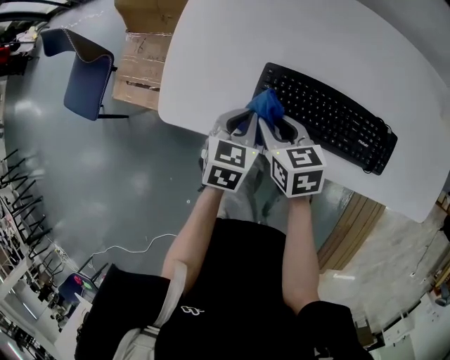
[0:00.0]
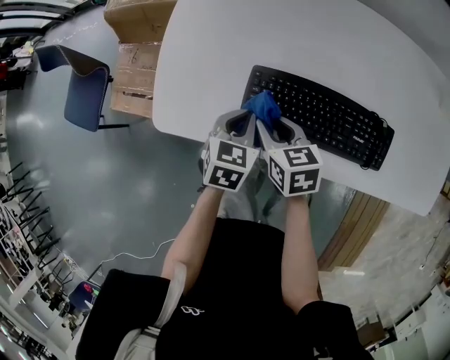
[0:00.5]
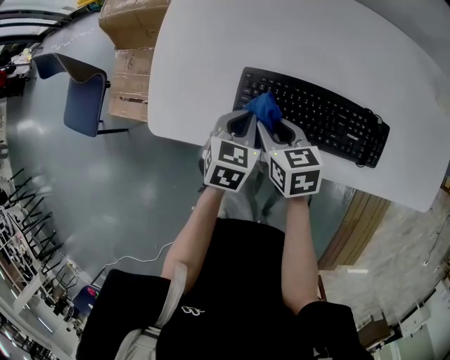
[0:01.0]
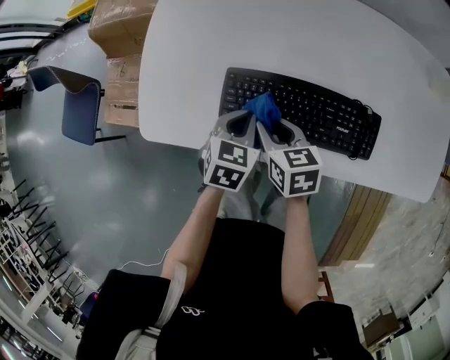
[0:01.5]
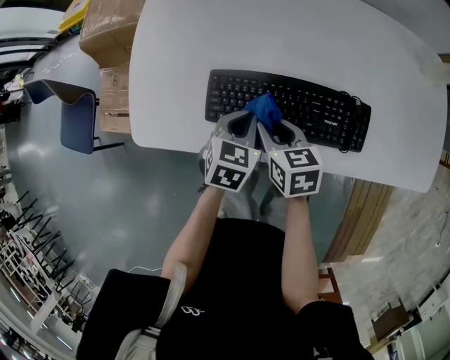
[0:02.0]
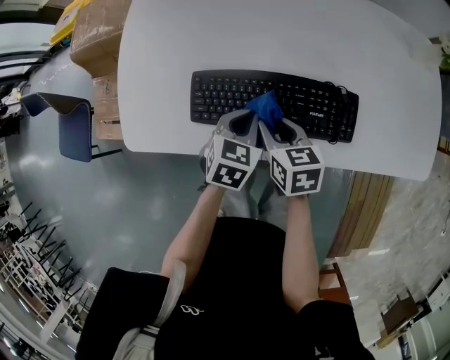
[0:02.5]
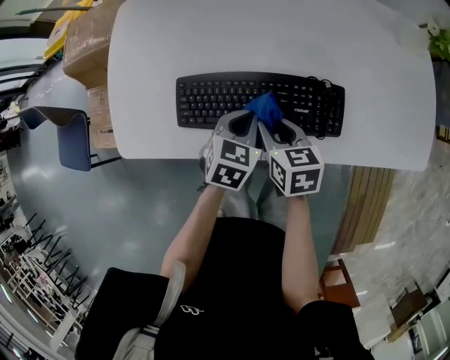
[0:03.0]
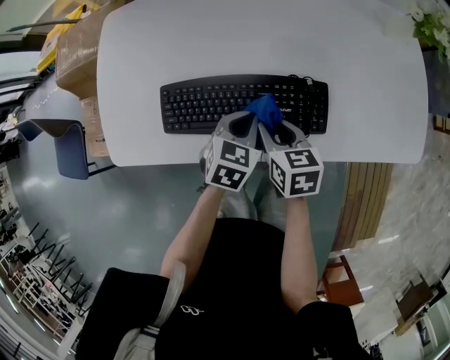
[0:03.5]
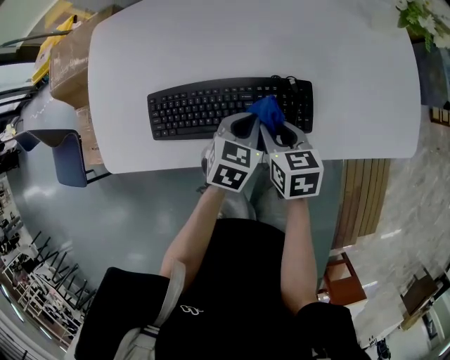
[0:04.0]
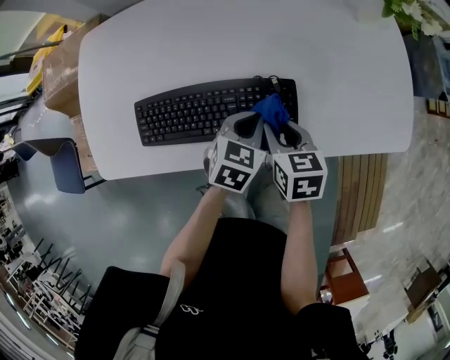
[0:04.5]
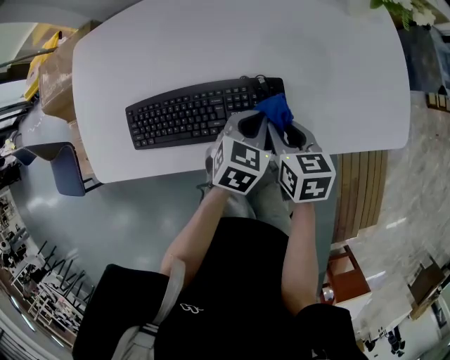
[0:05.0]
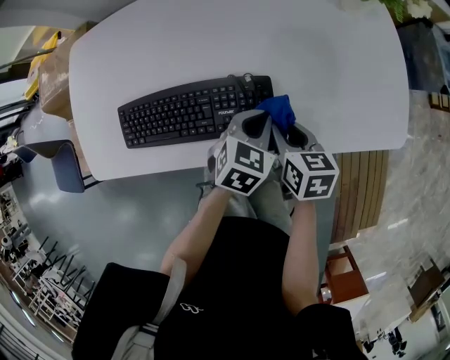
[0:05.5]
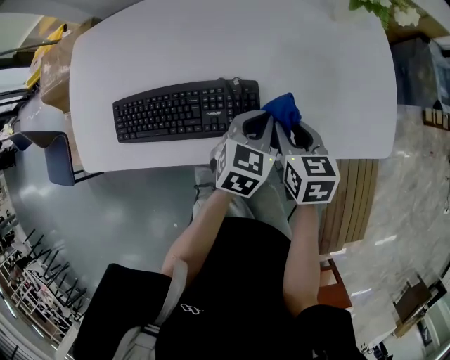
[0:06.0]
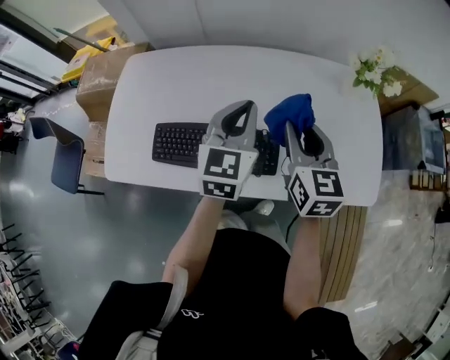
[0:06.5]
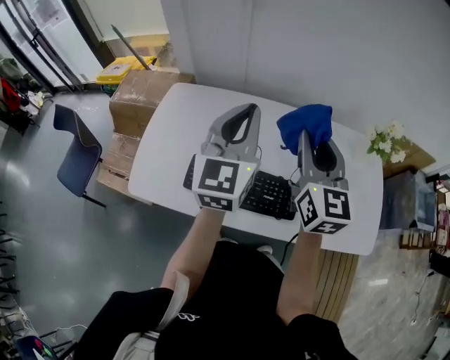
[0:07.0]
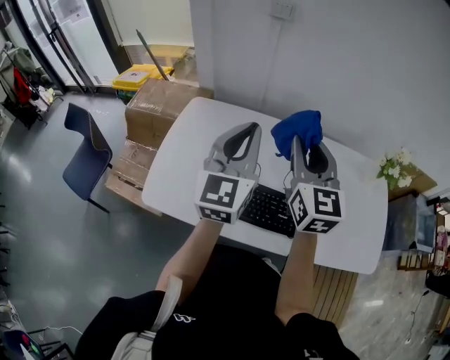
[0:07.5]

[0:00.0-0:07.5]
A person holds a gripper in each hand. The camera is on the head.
0:00.0 to 0:02.0: The two grippers go approximately 10 cm to the right.
0:02.0 to 0:04.0: Both grippers move to the right, roughly 15 cm.
0:04.0 to 0:05.5: Both grippers move to the right, some 15 cm.
0:05.5 to 0:07.5: Both grippers travel together upward and to the left, some 50 cm. The right gripper tilts its fingers about 40 degrees upward; the left gripper points its fingers some 50 degrees further upward.

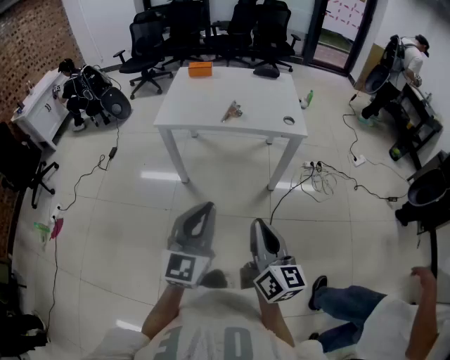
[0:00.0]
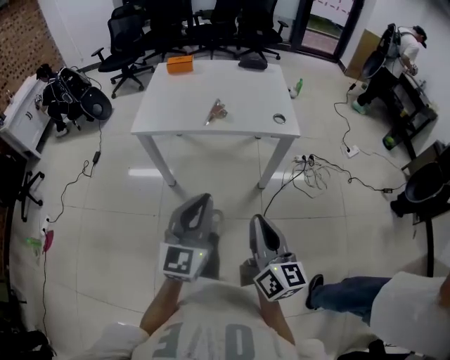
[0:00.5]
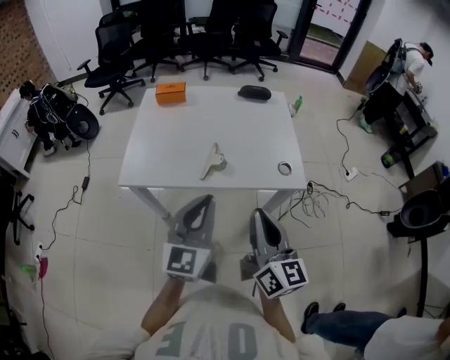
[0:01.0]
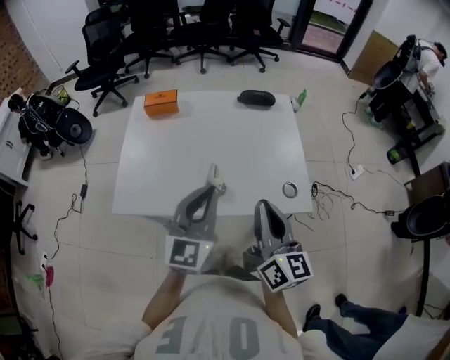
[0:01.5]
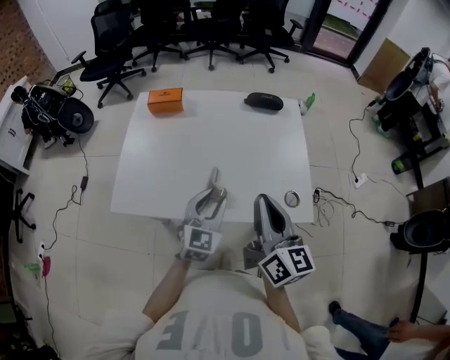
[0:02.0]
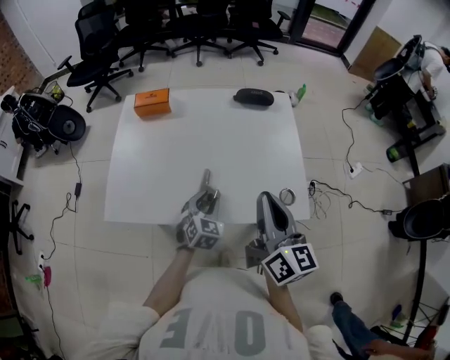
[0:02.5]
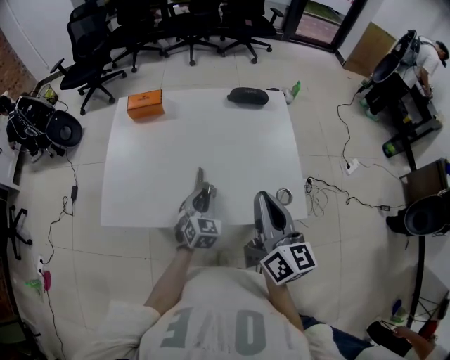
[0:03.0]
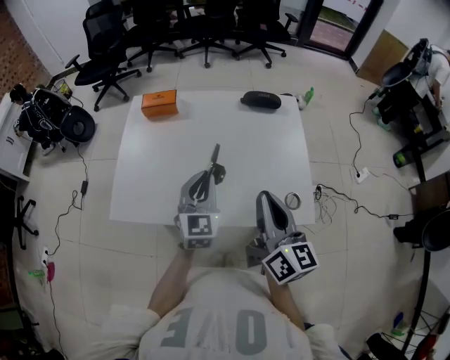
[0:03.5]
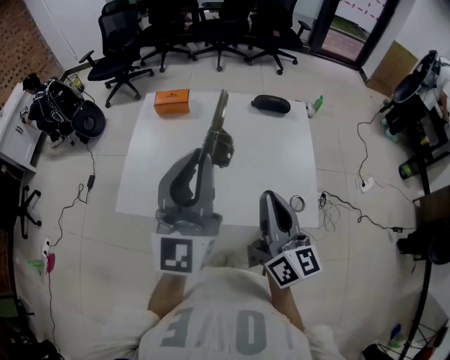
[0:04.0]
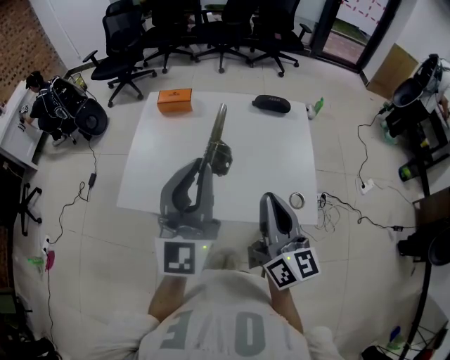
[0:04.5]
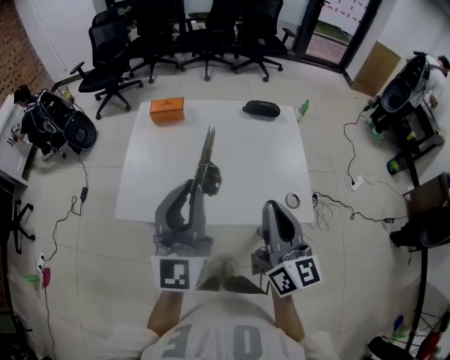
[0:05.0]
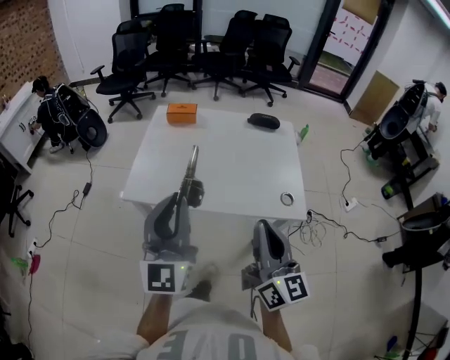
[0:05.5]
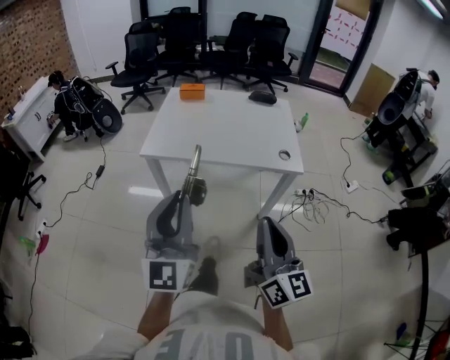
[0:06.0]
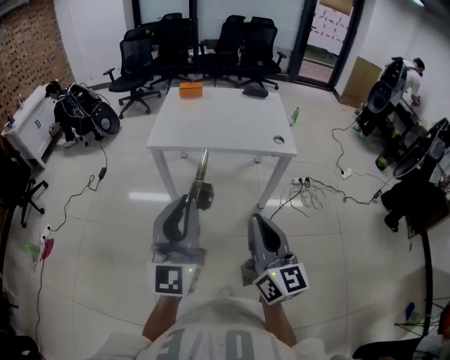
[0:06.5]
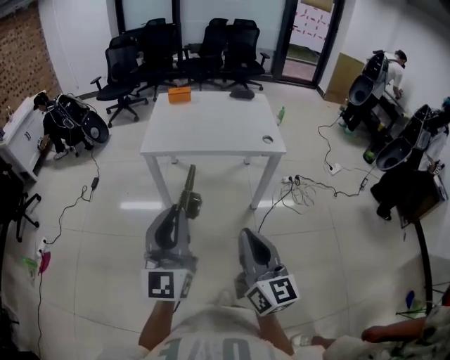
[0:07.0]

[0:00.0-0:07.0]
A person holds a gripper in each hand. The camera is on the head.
0:00.0 to 0:02.0: The pair of grippers is taken forward, approximately 50 cm. The left gripper rotates some 20 degrees, and opens its fingers.
0:02.0 to 0:03.5: The left gripper travels forward by about 5 cm, travels downward and back again, roughly 10 cm each way, and closes.
0:03.5 to 0:05.0: The left gripper goes approximately 20 cm upward and backward, and changes its angle by about 30 degrees. Meanwhile the right gripper is displaced backward by roughly 5 cm.
0:05.0 to 0:07.0: Both grippers are carried backward, some 50 cm.

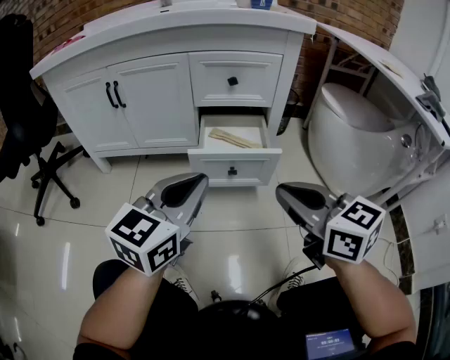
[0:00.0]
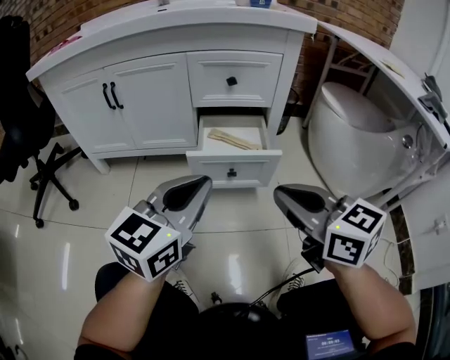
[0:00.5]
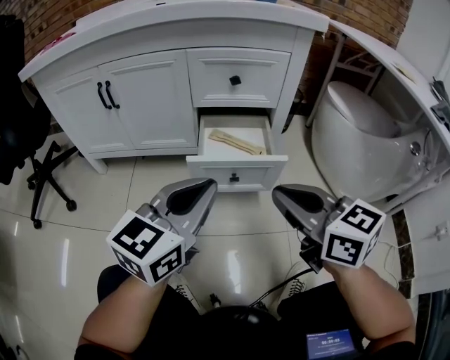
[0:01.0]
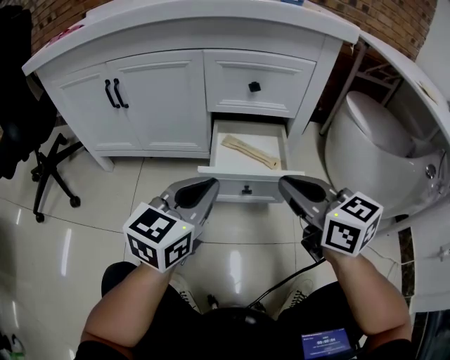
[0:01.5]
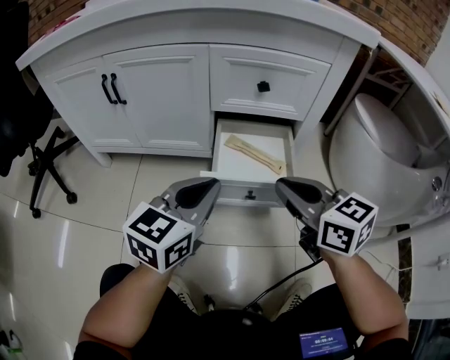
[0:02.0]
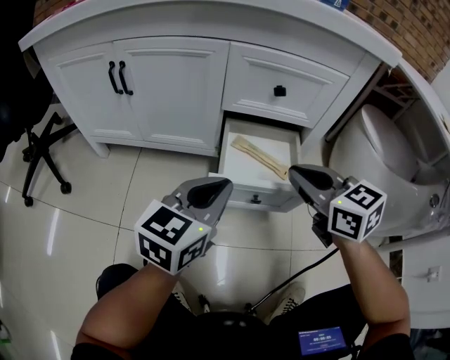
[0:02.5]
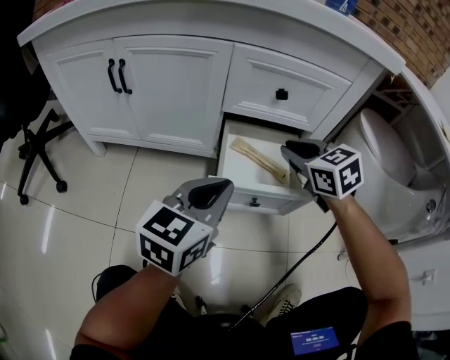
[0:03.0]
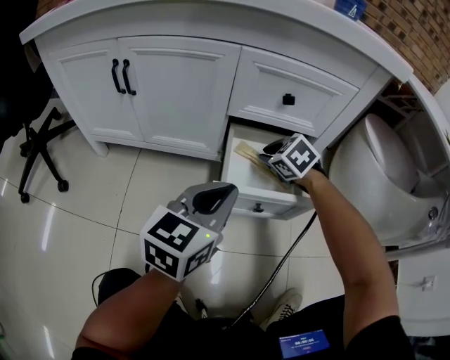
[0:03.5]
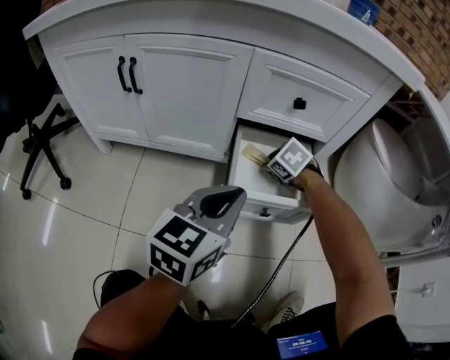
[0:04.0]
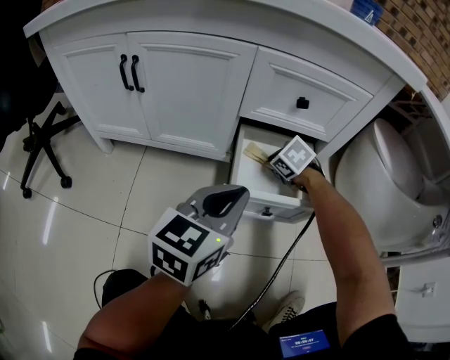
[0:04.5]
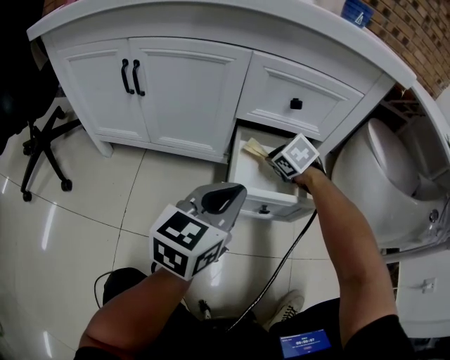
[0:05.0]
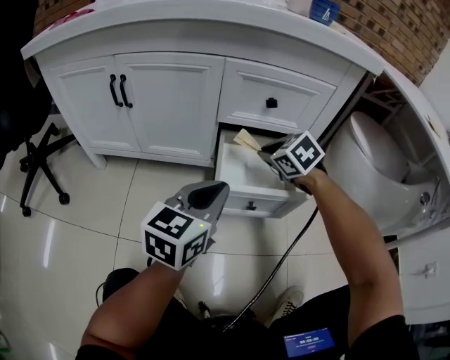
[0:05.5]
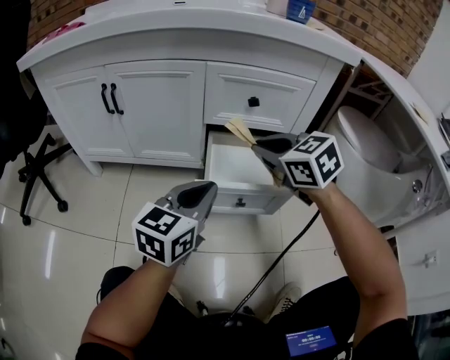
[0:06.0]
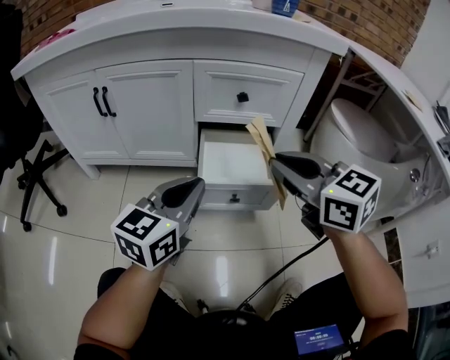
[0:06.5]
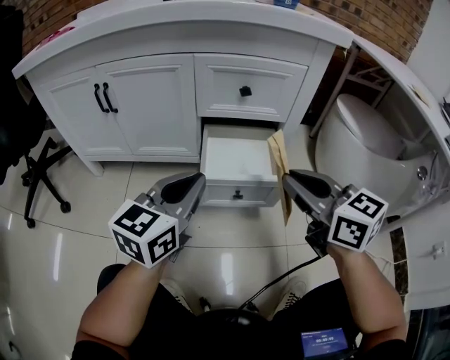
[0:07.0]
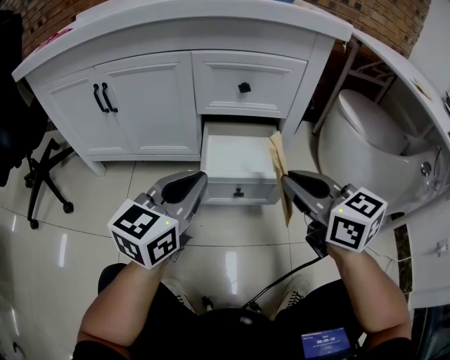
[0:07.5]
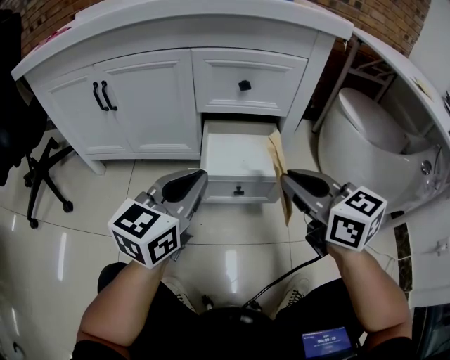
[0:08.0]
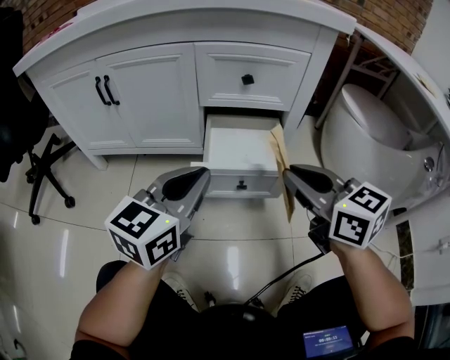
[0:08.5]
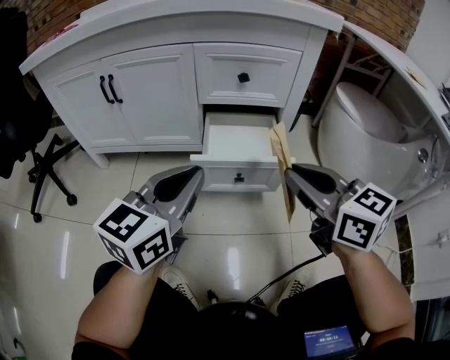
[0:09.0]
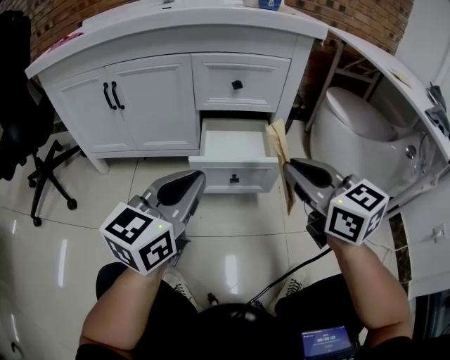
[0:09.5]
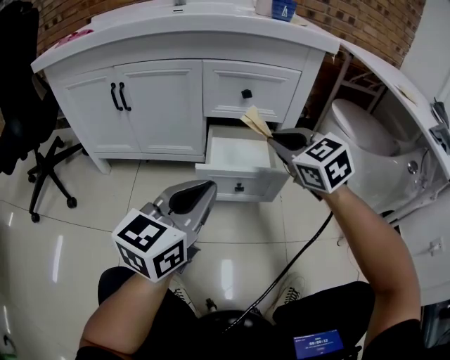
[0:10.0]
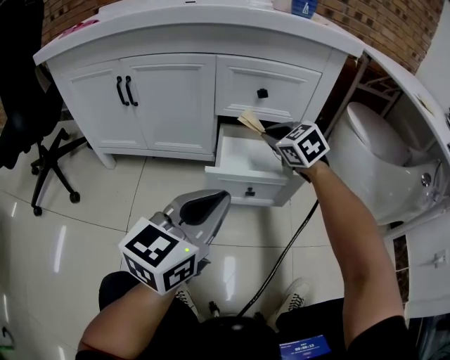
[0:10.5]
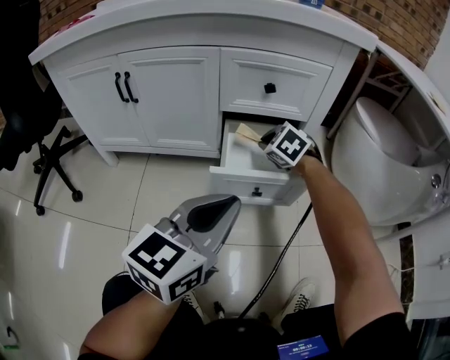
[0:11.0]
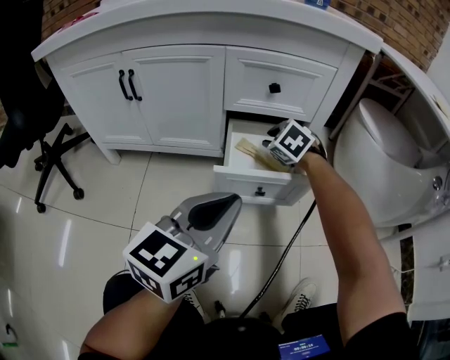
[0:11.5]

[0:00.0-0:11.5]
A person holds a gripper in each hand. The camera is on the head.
0:00.0 to 0:02.0: The left gripper moves forward and downward, approximately 15 cm, while the right gripper moves forward, about 15 cm.
0:02.0 to 0:04.0: The right gripper travels forward and downward by about 30 cm, tips its fingers downward by approximately 50 degrees, and opens up.
0:04.0 to 0:06.0: The right gripper heads upward and backward, covering approximately 25 cm, tips its fingers upward by roughly 30 degrees, and closes its fingers.
0:06.0 to 0:07.5: The right gripper moves backward and to the right, some 15 cm, and changes its angle by about 30 degrees.
0:07.5 to 0:09.5: The two grippers go about 5 cm backward.
0:09.5 to 0:11.5: The right gripper travels forward and downward by roughly 30 cm, and points its fingers some 40 degrees further downward.

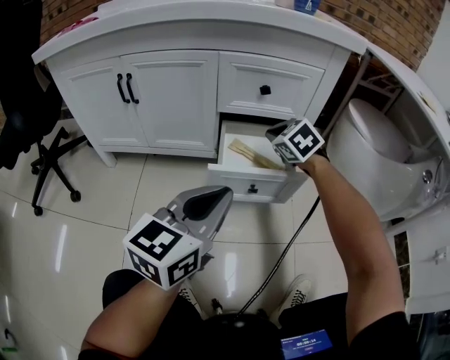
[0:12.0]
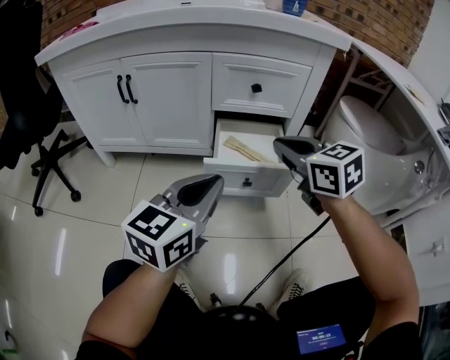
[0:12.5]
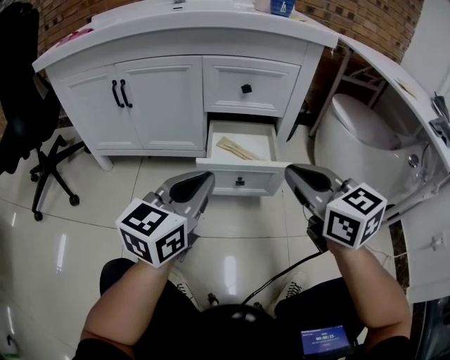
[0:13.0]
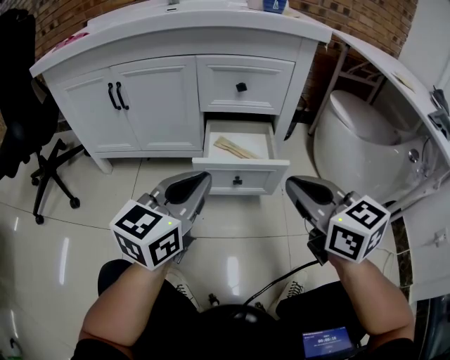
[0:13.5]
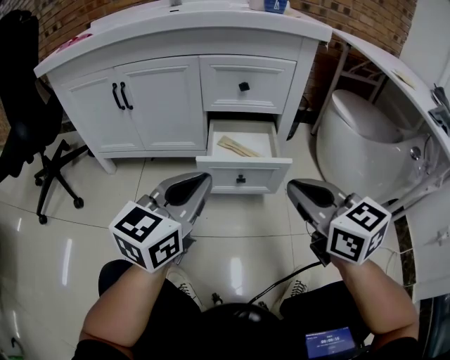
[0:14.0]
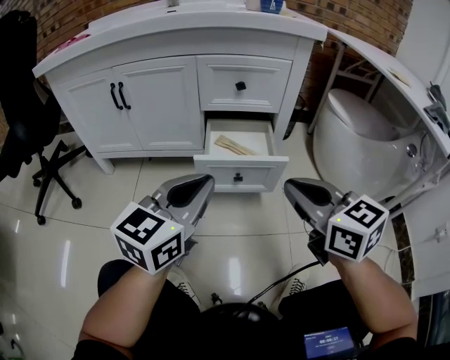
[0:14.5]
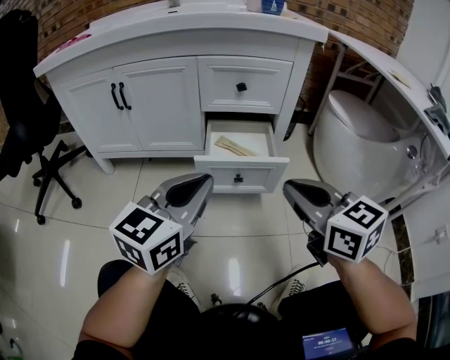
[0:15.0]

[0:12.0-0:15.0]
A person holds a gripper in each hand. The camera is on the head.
0:12.0 to 0:13.5: The right gripper is displaced backward and upward by about 30 cm, and tips its fingers upward by about 30 degrees.
0:13.5 to 0:15.0: The grippers make only small movements.
